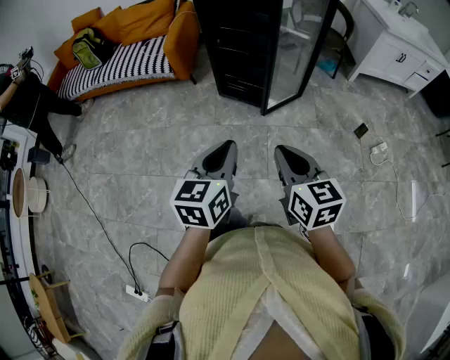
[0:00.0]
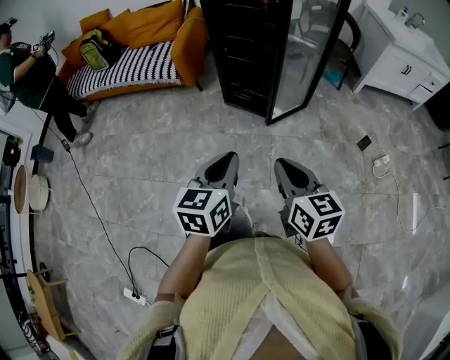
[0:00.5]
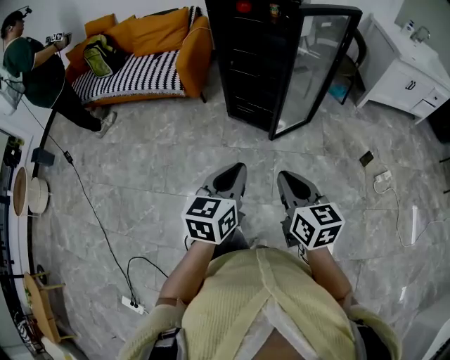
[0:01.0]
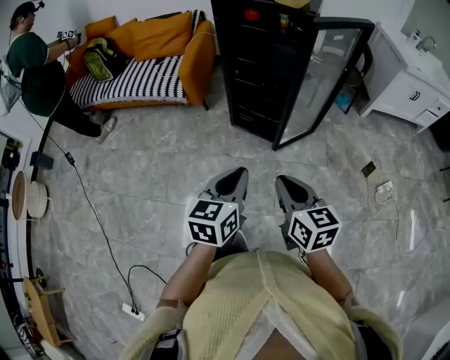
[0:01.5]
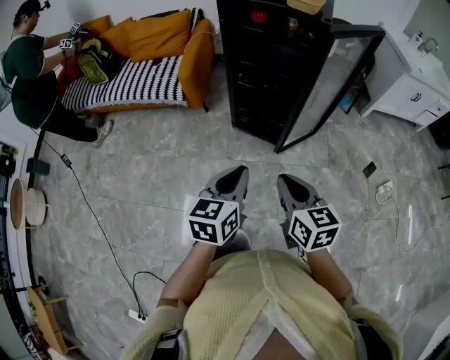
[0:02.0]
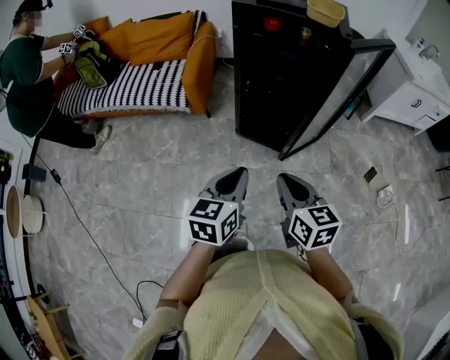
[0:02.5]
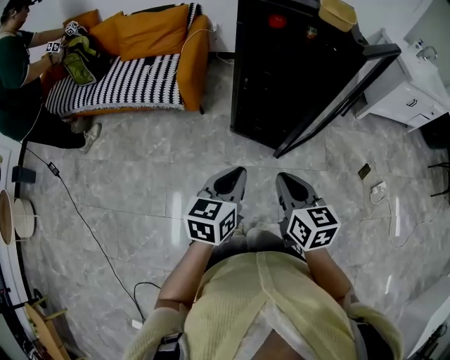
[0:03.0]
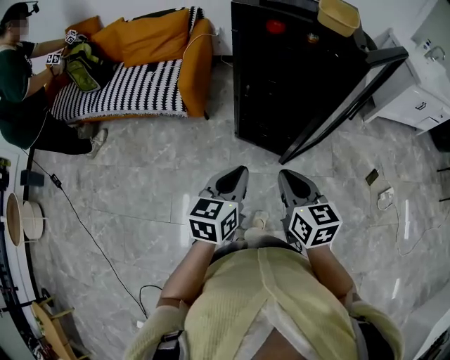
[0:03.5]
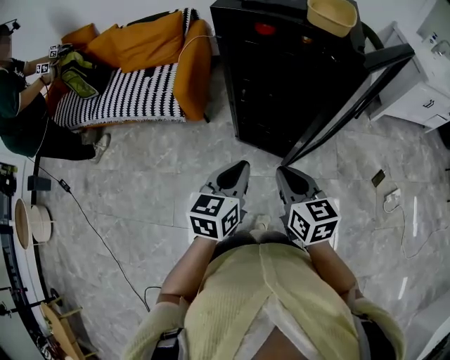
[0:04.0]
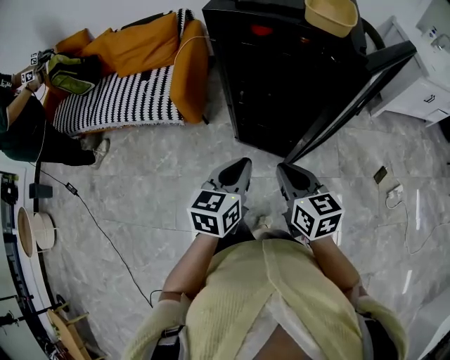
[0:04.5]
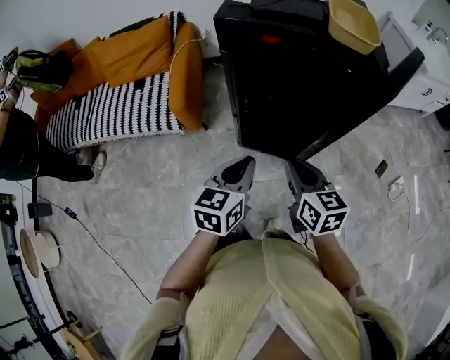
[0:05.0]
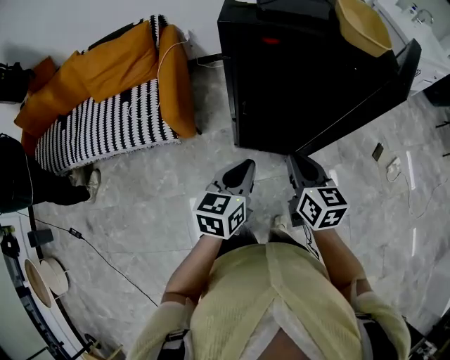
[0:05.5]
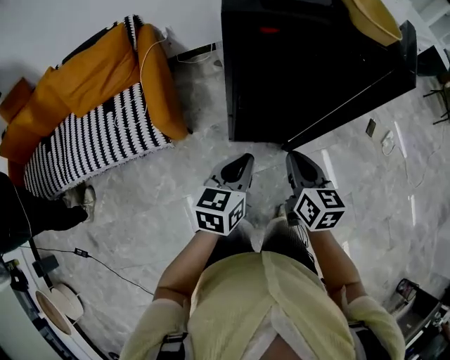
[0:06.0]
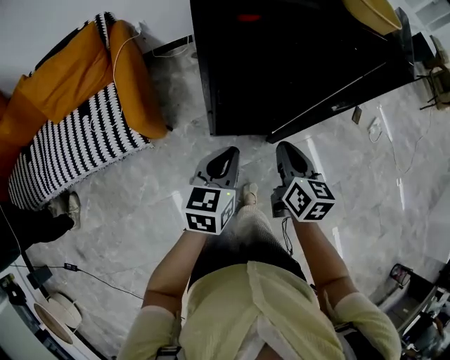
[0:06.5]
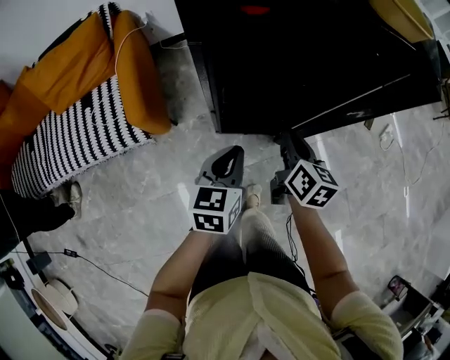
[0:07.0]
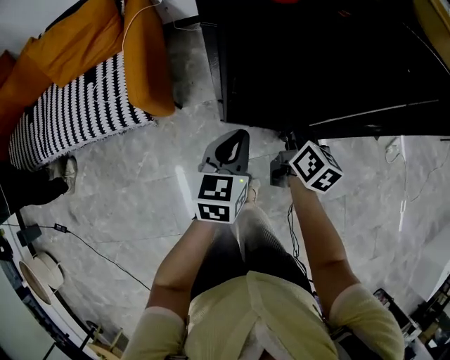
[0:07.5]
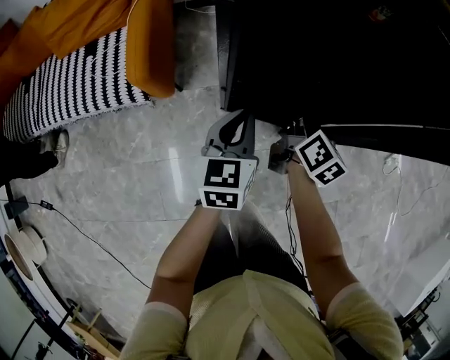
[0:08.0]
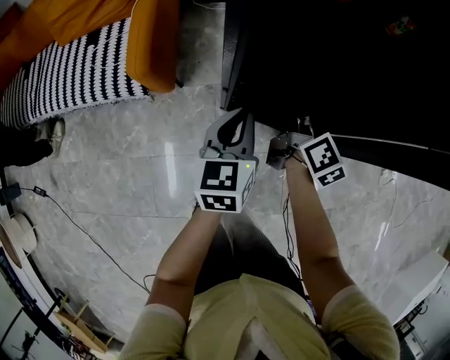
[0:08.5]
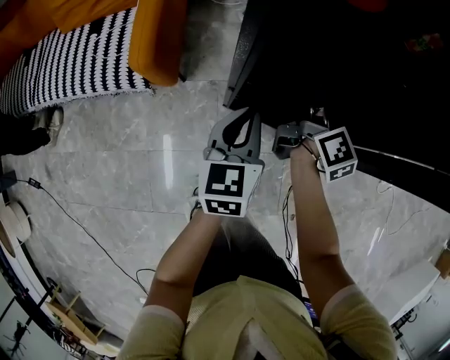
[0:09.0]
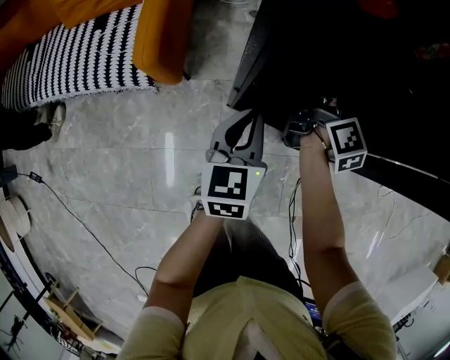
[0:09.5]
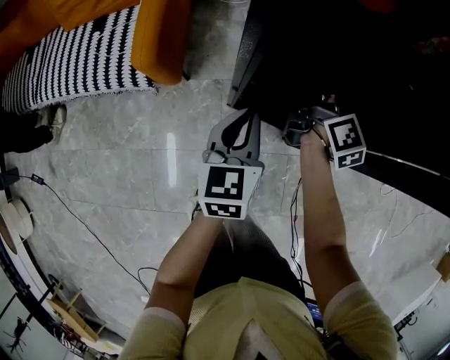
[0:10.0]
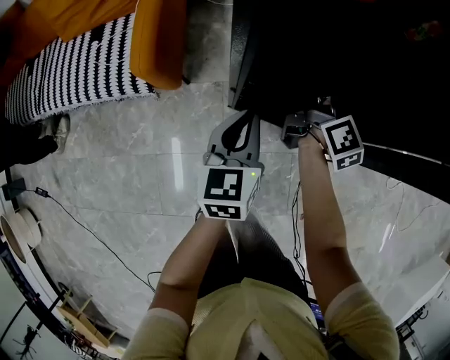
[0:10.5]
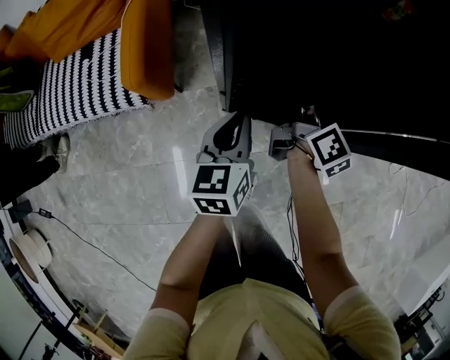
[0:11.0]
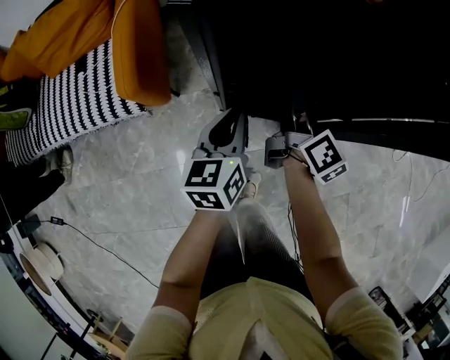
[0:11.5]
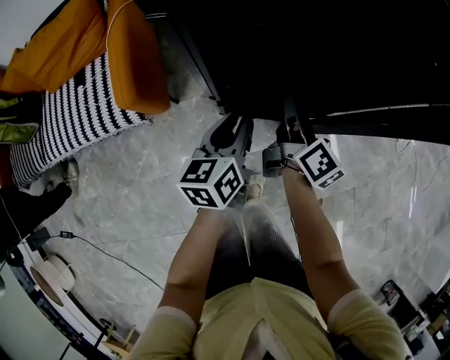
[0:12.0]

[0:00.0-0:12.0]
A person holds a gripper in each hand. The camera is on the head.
0:00.0 to 0:02.0: The left gripper heads forward, covering approximately 15 cm, while the right gripper goes about 15 cm forward and to the left.
0:02.0 to 0:04.0: The grippers both shift forward by about 20 cm.
0:04.0 to 0:06.0: The right gripper moves approximately 15 cm, and rotates about 30 degrees; the left gripper shifts by roughly 15 cm, and swivels approximately 20 degrees.
0:06.0 to 0:08.0: Both grippers move forward and downward, approximately 20 cm. The right gripper turns by about 20 degrees. The left gripper rotates about 20 degrees.
0:08.0 to 0:10.0: The right gripper heads forward, covering some 10 cm, and opens up.
0:10.0 to 0:12.0: The left gripper rotates about 20 degrees; the right gripper shifts roughly 10 cm backward.

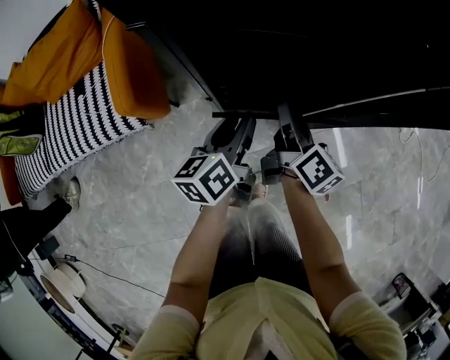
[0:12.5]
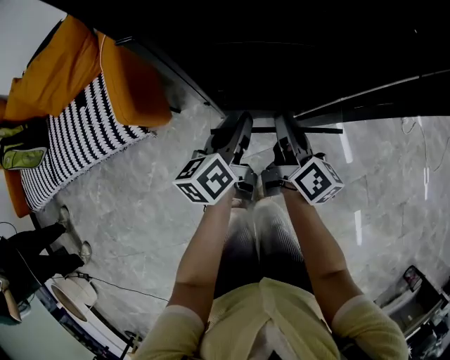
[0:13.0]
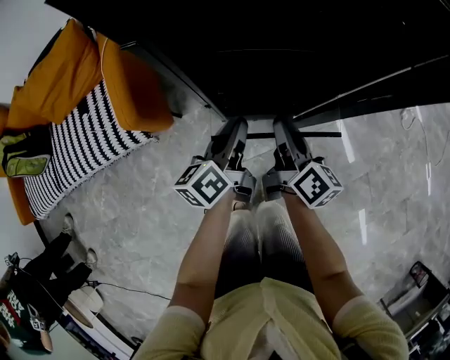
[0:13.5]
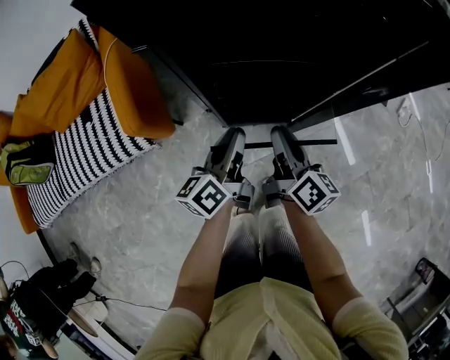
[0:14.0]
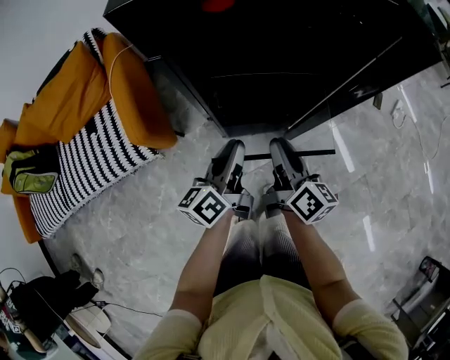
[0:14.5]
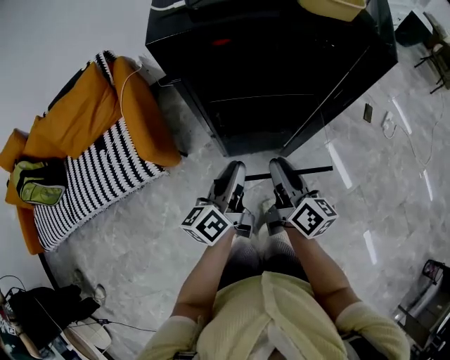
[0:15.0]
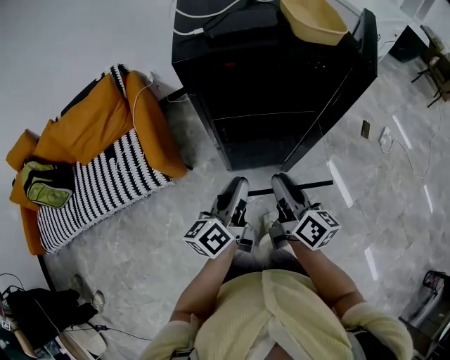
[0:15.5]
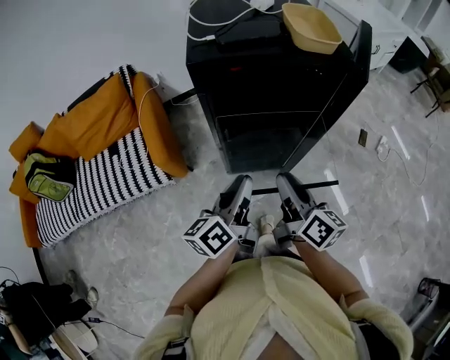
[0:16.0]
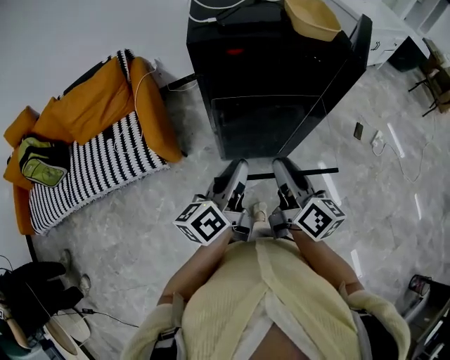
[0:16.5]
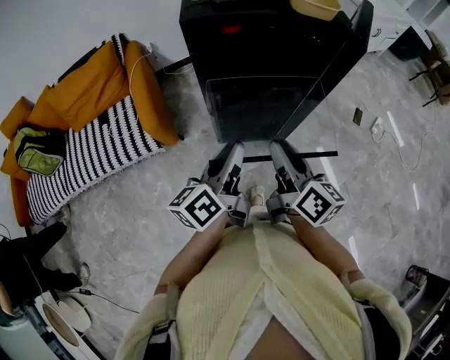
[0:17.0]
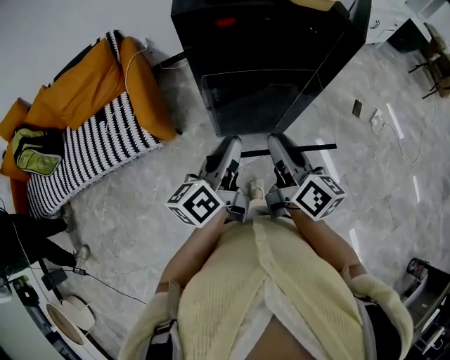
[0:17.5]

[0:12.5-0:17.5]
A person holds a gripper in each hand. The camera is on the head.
0:12.5 to 0:15.0: The left gripper moves upward and backward, some 15 cm. The right gripper travels backward and upward by about 15 cm.
0:15.0 to 0:17.5: Both grippers move upward and backward, about 10 cm.

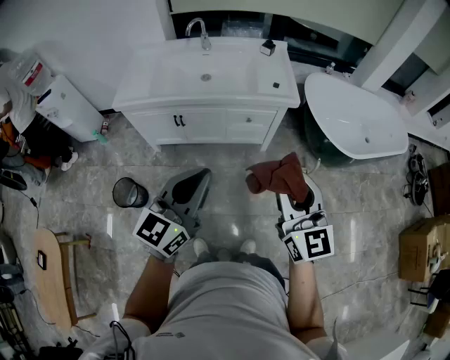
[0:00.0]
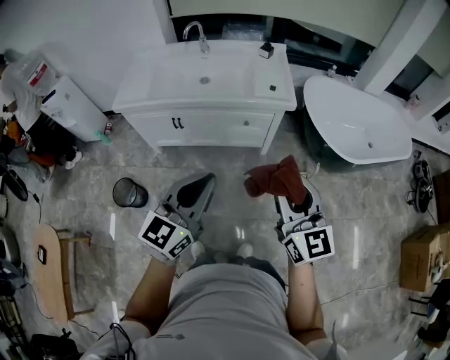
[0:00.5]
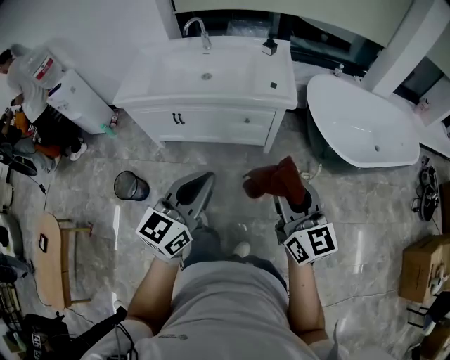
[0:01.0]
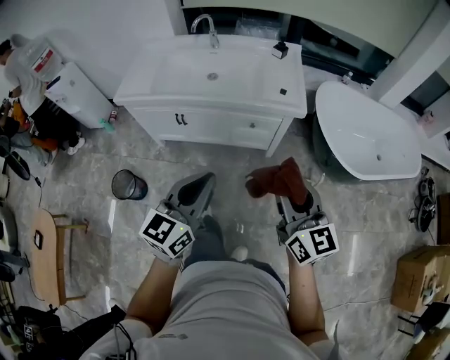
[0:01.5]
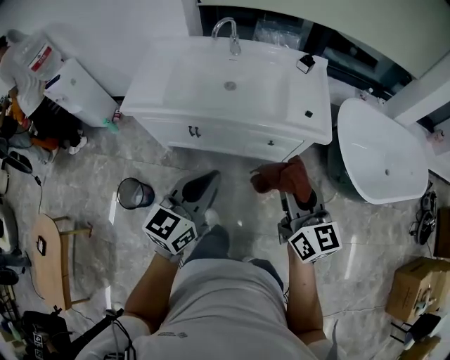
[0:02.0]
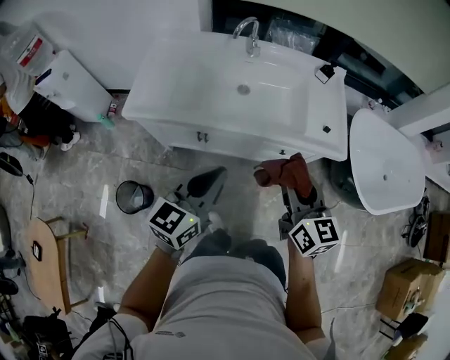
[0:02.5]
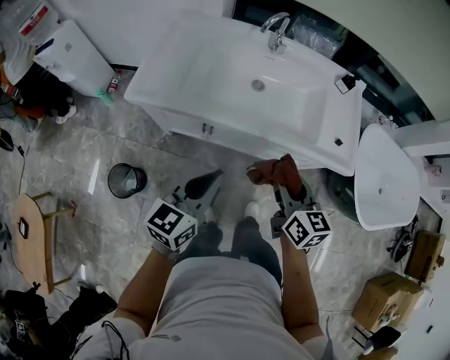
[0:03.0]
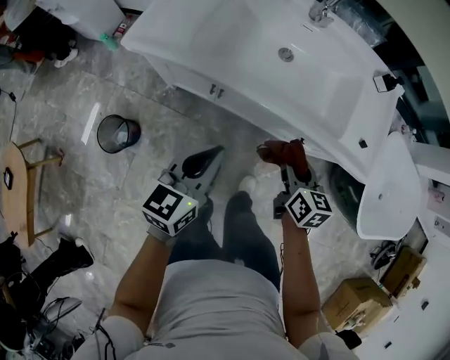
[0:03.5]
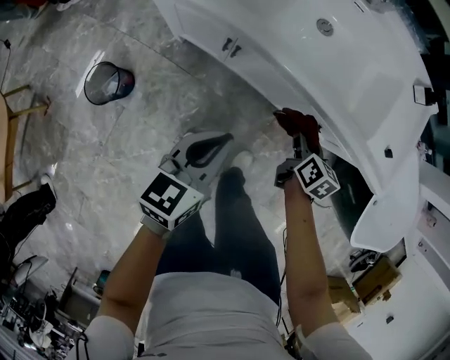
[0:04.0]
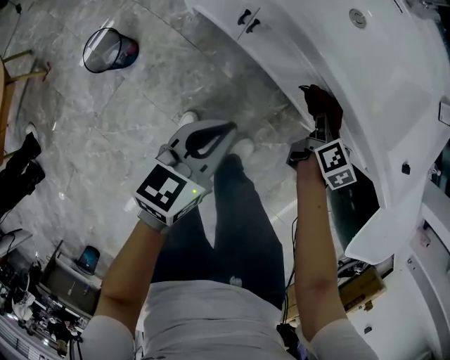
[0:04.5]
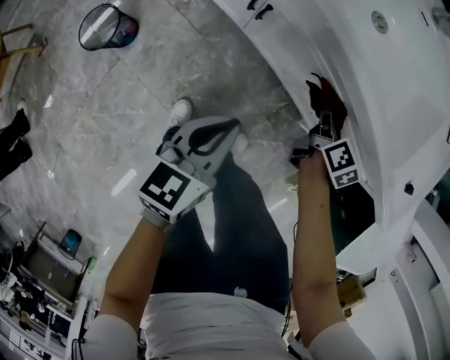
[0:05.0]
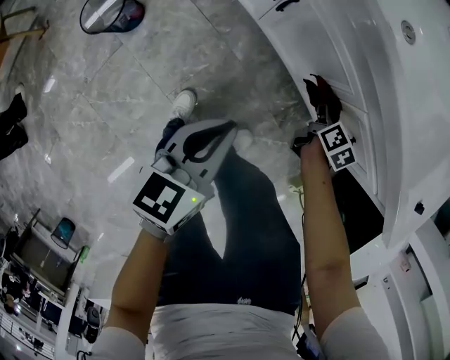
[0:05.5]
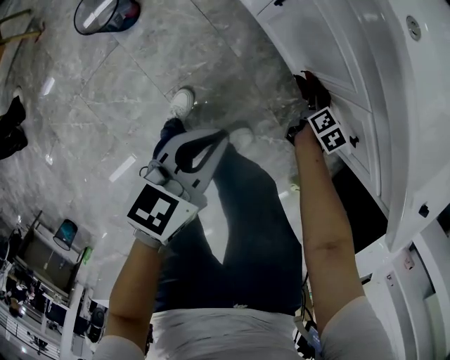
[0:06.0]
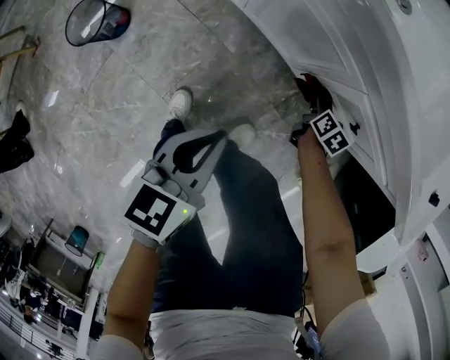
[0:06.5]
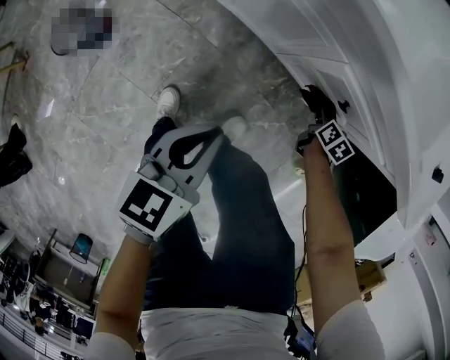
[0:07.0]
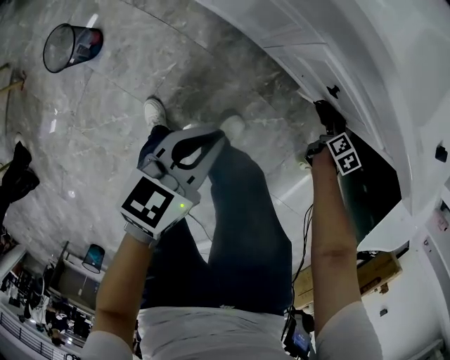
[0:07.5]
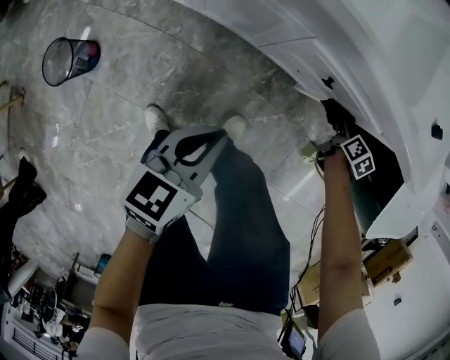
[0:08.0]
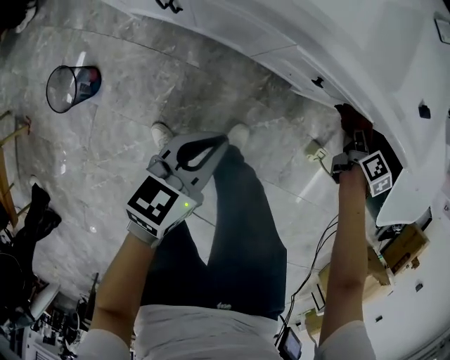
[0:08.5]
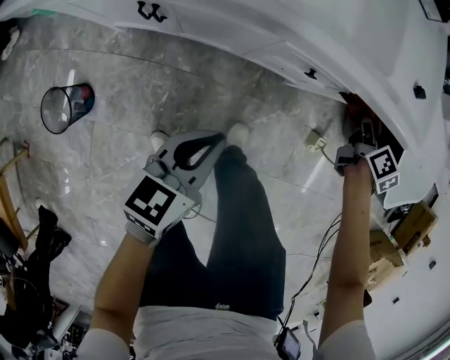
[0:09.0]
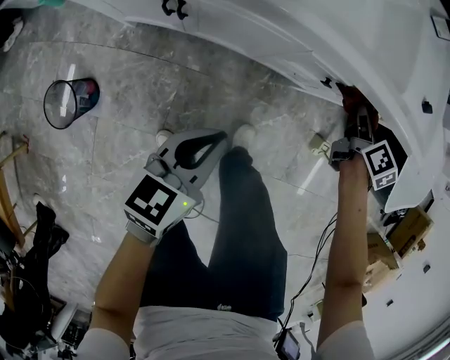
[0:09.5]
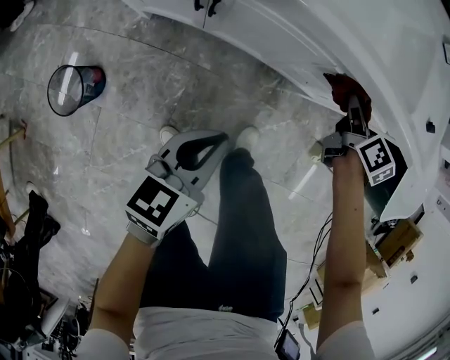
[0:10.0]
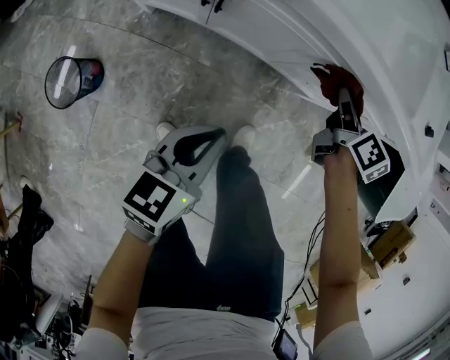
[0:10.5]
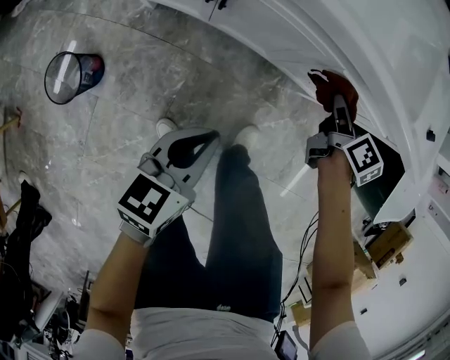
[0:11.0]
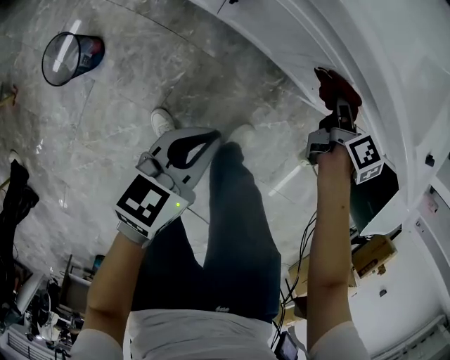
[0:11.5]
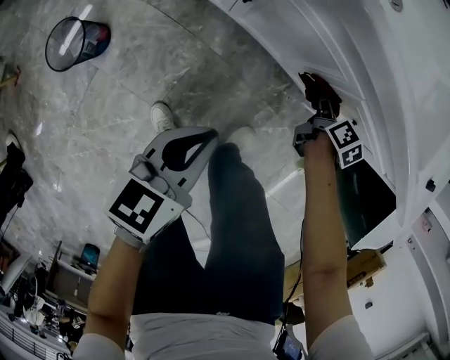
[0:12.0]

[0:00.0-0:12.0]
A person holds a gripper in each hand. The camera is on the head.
0:00.0 to 0:02.0: Both grippers move forward, some 20 cm. The right gripper turns by approximately 20 degrees.
0:02.0 to 0:04.0: The left gripper goes approximately 25 cm downward, and turns by roughly 30 degrees. Meanwhile the right gripper travels downward and forward by roughly 50 cm, and angles its fingers downward, by some 40 degrees.
0:04.0 to 0:06.0: The right gripper shifts approximately 30 cm downward. The left gripper goes roughly 15 cm downward, and rotates about 20 degrees.
0:06.0 to 0:08.0: The left gripper goes about 10 cm to the right, and turns by about 30 degrees. The right gripper is displaced to the right by roughly 30 cm, and rotates some 20 degrees.
0:08.0 to 0:10.0: The left gripper shifts about 10 cm to the left; the right gripper is displaced to the left and upward by approximately 25 cm.
0:10.0 to 0:12.0: The right gripper heads downward, covering roughly 15 cm.
